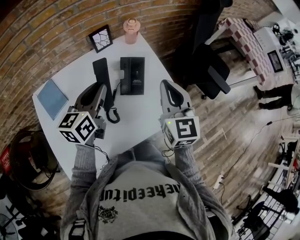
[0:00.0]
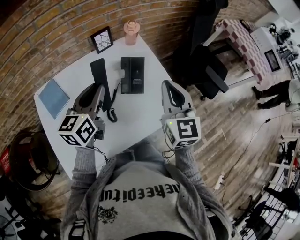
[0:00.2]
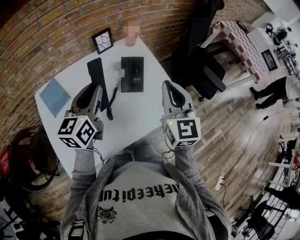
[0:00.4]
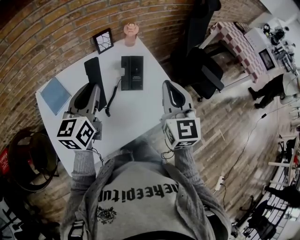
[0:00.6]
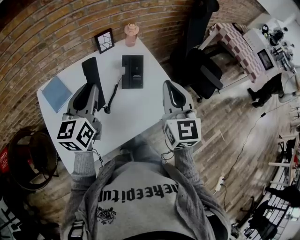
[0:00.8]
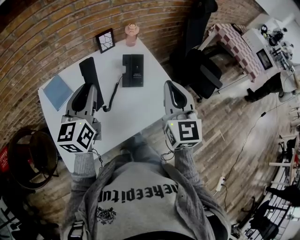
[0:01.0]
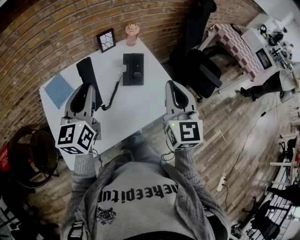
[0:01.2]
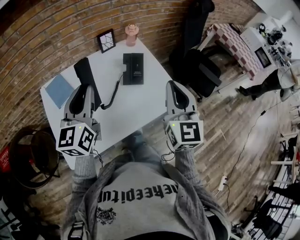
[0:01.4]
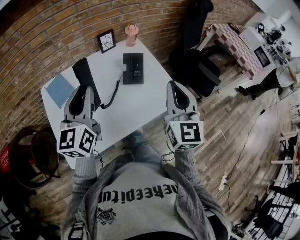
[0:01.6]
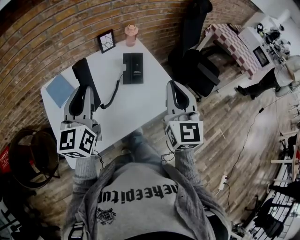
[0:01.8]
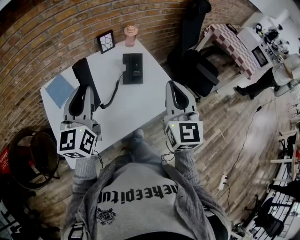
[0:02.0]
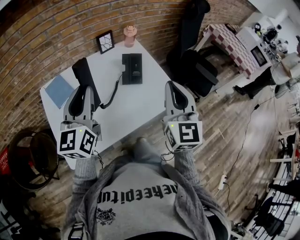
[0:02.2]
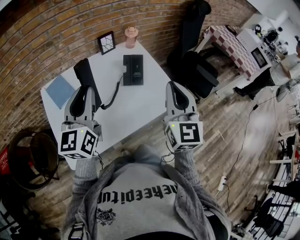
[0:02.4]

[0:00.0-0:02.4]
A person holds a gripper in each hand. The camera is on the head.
0:00.0 to 0:01.2: The two grippers go some 15 cm backward and upward. The left gripper swivels about 20 degrees.
0:01.2 to 0:02.4: The grippers stay close to where they were, moving slightly.

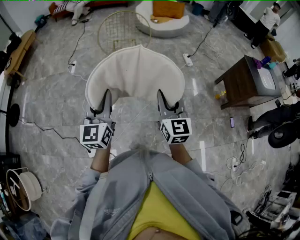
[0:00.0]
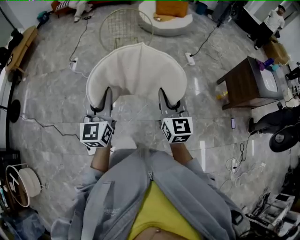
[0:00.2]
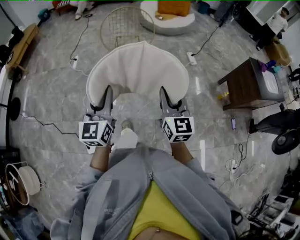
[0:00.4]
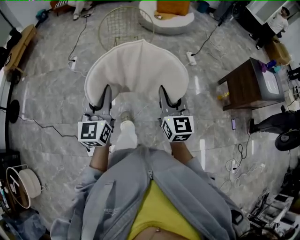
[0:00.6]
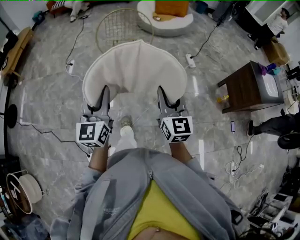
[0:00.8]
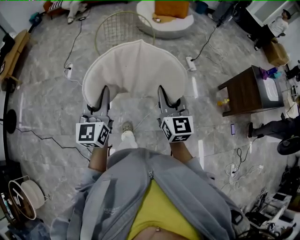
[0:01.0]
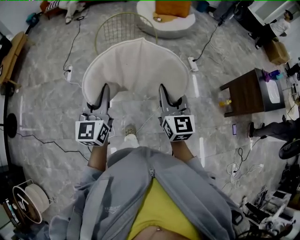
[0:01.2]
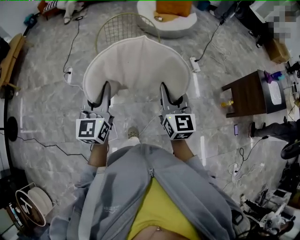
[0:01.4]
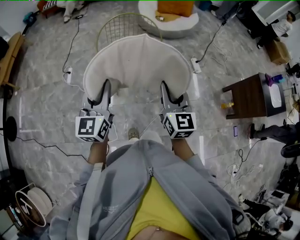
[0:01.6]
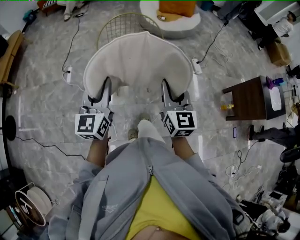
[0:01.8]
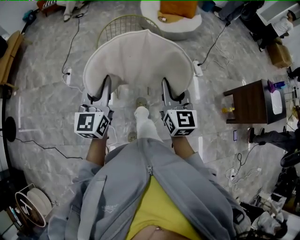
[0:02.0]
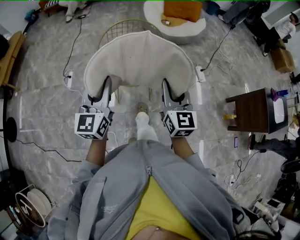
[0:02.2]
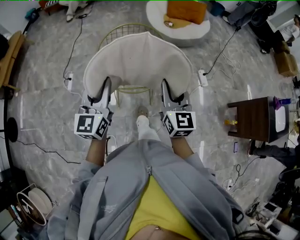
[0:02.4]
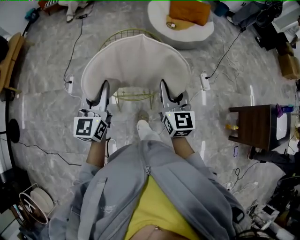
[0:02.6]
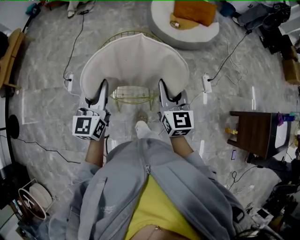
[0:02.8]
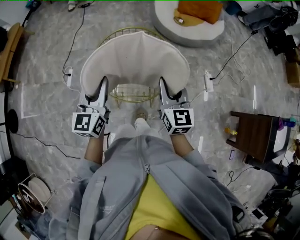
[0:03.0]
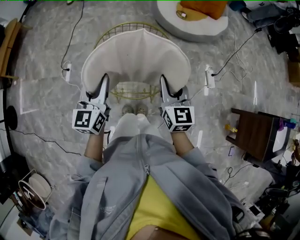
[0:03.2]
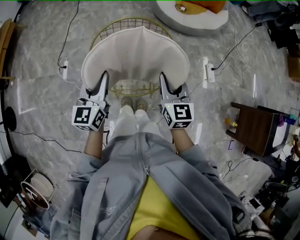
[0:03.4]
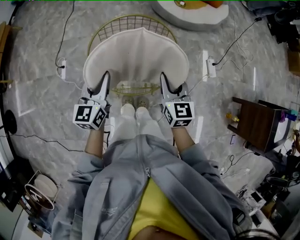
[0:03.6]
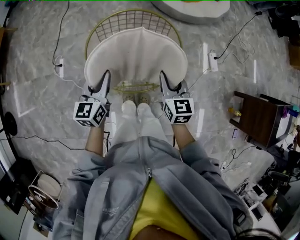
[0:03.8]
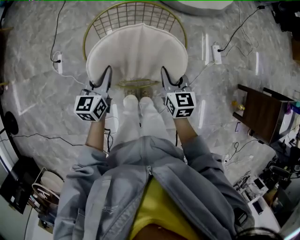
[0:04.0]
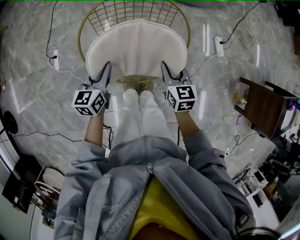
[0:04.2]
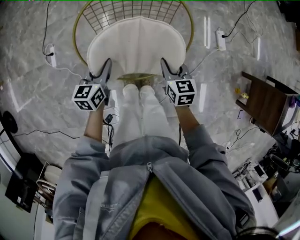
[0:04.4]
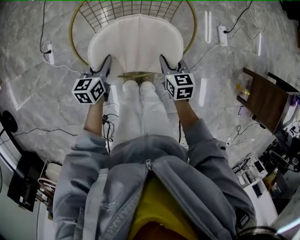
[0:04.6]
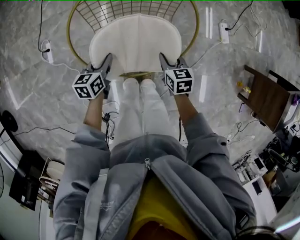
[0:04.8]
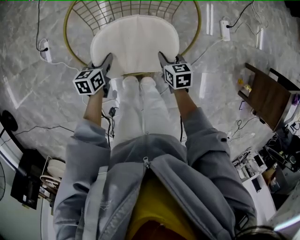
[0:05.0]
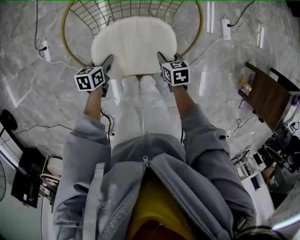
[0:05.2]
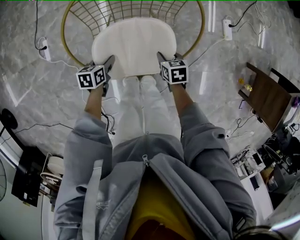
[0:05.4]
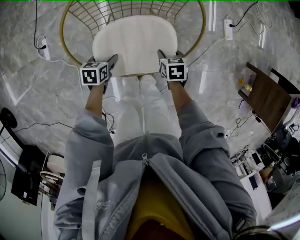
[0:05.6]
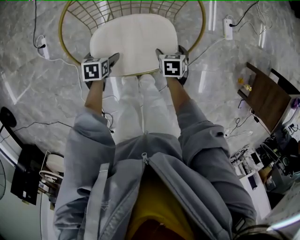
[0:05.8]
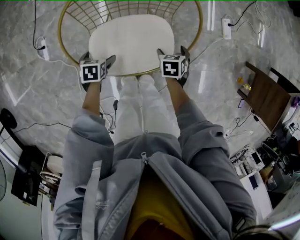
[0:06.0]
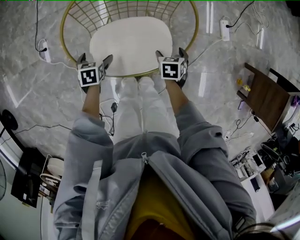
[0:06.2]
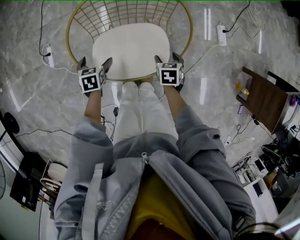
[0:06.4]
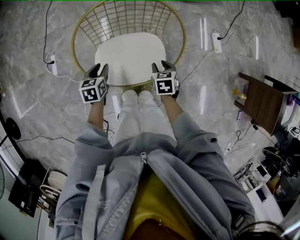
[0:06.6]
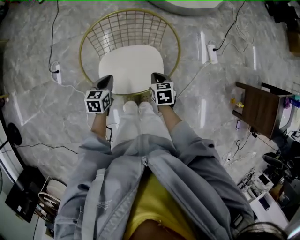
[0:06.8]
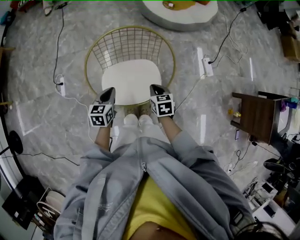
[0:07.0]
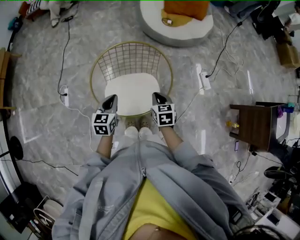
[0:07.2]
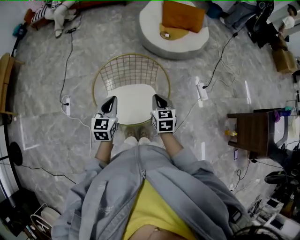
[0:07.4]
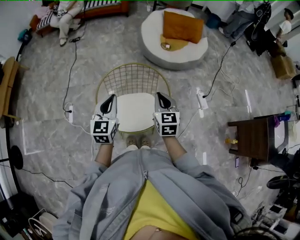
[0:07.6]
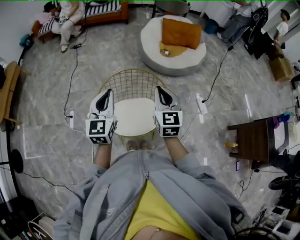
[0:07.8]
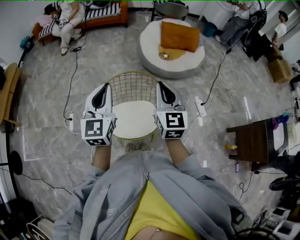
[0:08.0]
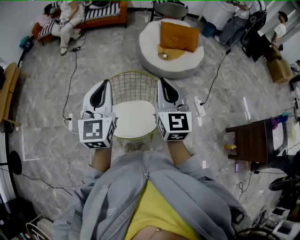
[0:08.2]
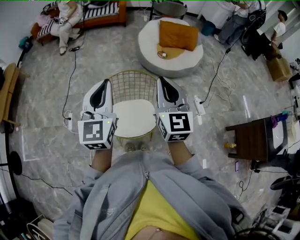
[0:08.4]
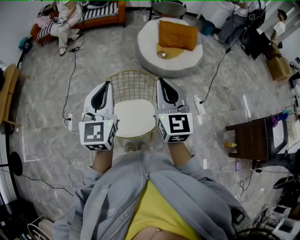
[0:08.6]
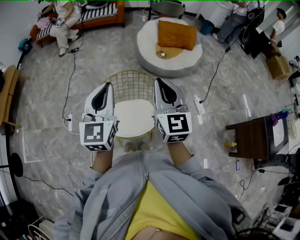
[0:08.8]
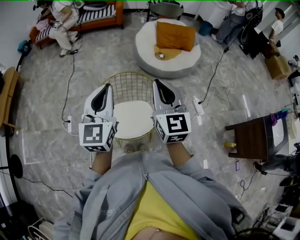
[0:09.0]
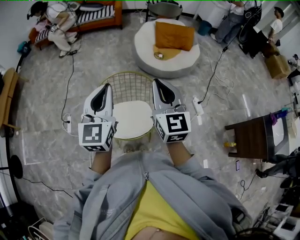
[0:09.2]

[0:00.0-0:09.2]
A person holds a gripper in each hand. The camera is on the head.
0:00.0 to 0:01.6: Both grippers move forward, about 35 cm.
0:01.6 to 0:03.0: The grippers both shift forward by approximately 40 cm.
0:03.0 to 0:04.6: The grippers both shift downward by about 35 cm. The right gripper points its fingers about 30 degrees further downward, while the left gripper swivels about 40 degrees.
0:04.6 to 0:06.2: Both grippers travel together downward, some 10 cm. The right gripper turns by approximately 30 degrees, and opens up. The left gripper points its fingers roughly 30 degrees further downward, and opens.
0:06.2 to 0:07.6: Both grippers move upward, approximately 40 cm. The right gripper tips its fingers upward by about 50 degrees, and closes up. Meanwhile the left gripper points its fingers roughly 50 degrees further upward, and closes.
0:07.6 to 0:09.2: Both grippers move upward, about 20 cm. The right gripper rotates approximately 20 degrees.

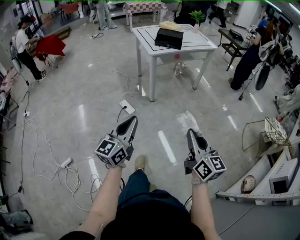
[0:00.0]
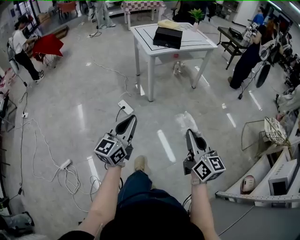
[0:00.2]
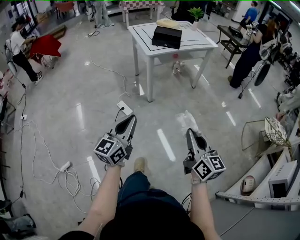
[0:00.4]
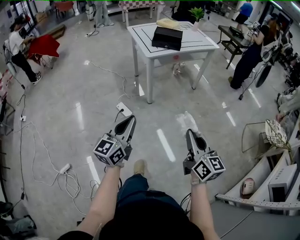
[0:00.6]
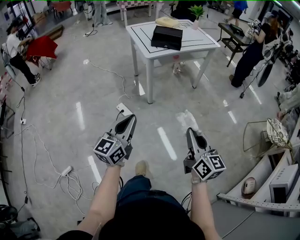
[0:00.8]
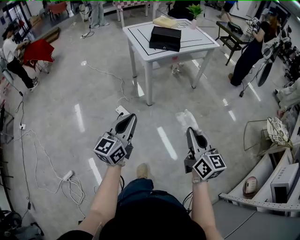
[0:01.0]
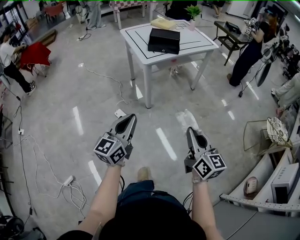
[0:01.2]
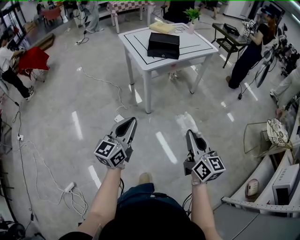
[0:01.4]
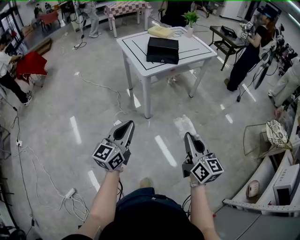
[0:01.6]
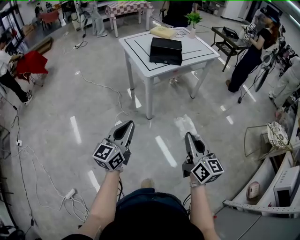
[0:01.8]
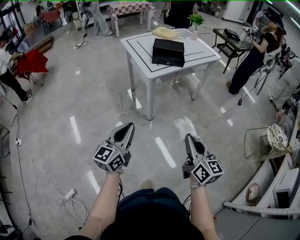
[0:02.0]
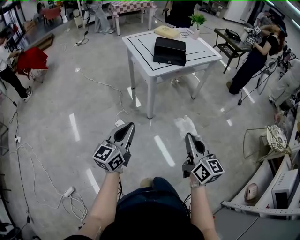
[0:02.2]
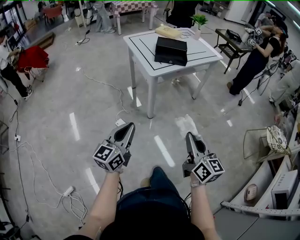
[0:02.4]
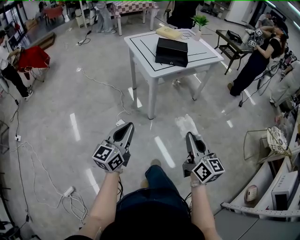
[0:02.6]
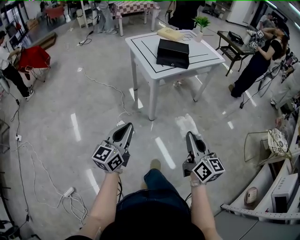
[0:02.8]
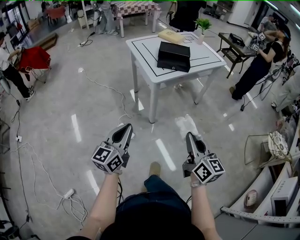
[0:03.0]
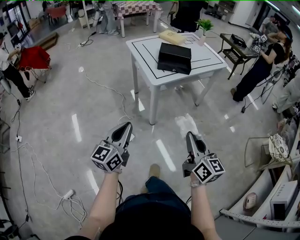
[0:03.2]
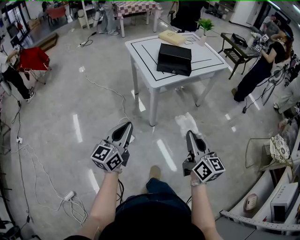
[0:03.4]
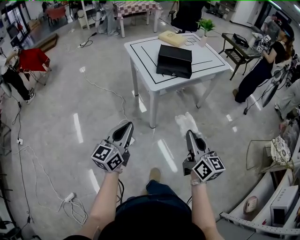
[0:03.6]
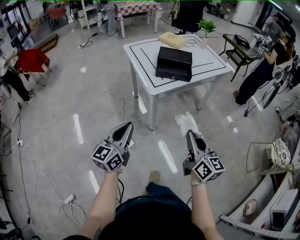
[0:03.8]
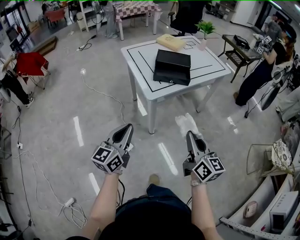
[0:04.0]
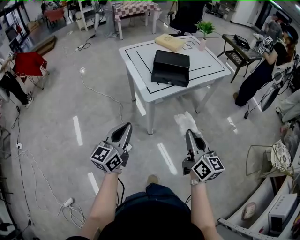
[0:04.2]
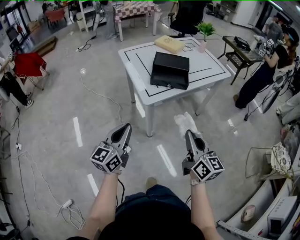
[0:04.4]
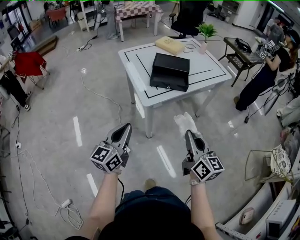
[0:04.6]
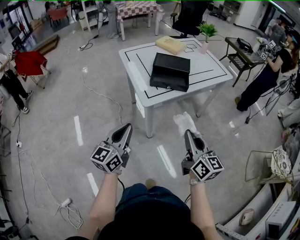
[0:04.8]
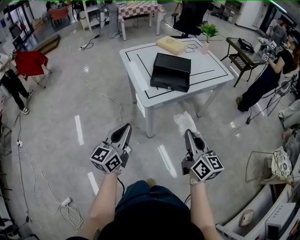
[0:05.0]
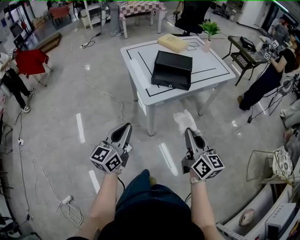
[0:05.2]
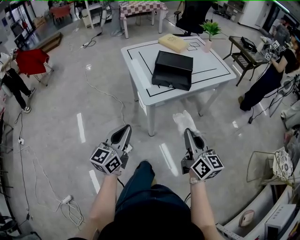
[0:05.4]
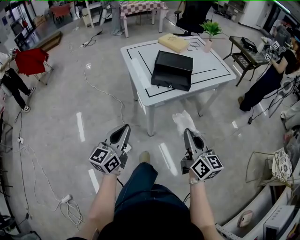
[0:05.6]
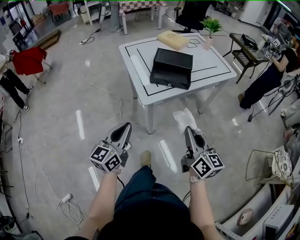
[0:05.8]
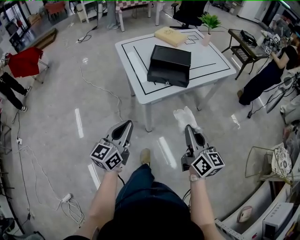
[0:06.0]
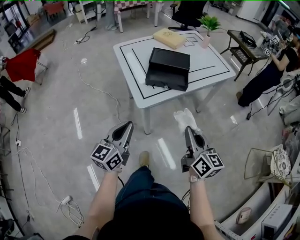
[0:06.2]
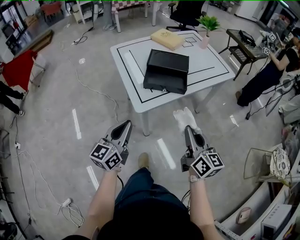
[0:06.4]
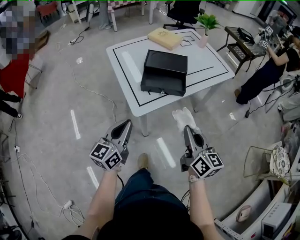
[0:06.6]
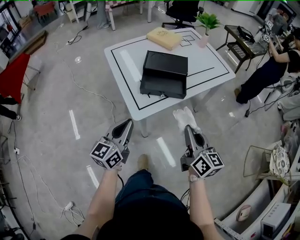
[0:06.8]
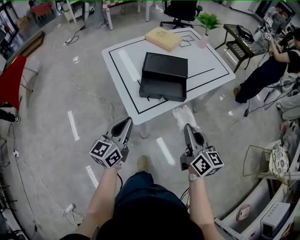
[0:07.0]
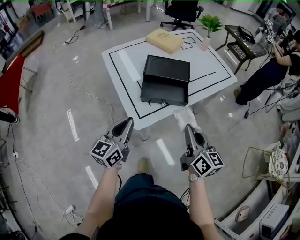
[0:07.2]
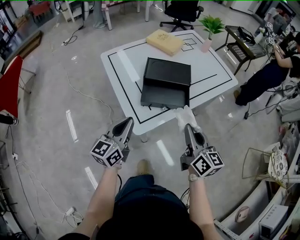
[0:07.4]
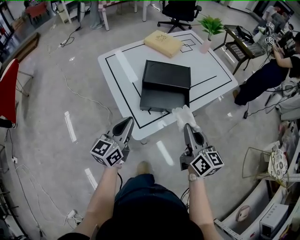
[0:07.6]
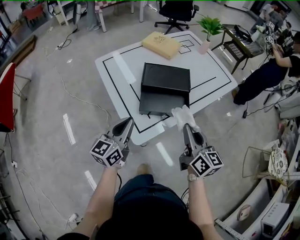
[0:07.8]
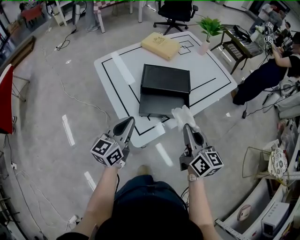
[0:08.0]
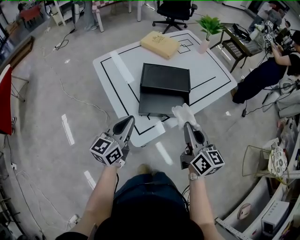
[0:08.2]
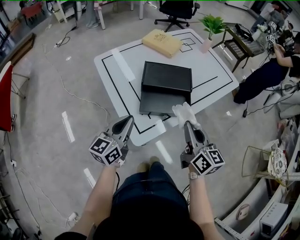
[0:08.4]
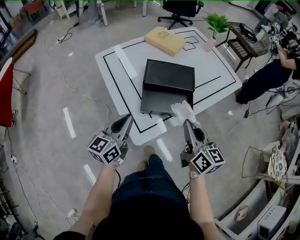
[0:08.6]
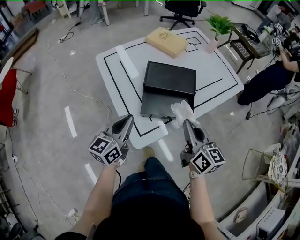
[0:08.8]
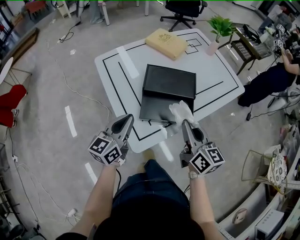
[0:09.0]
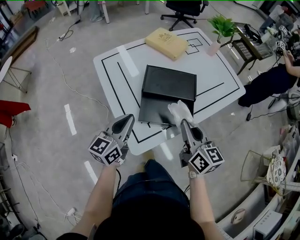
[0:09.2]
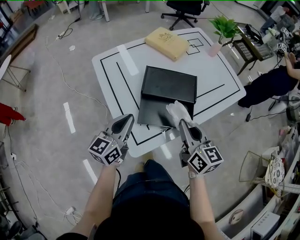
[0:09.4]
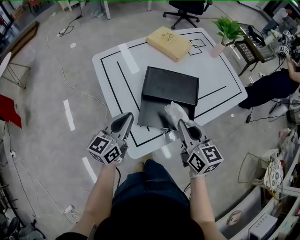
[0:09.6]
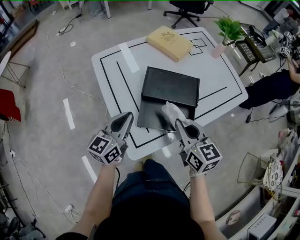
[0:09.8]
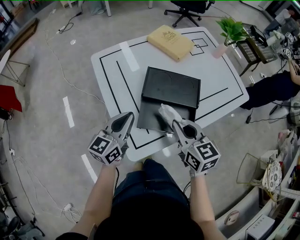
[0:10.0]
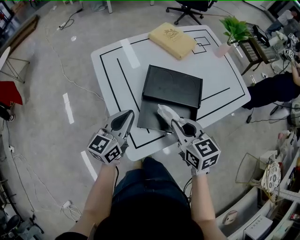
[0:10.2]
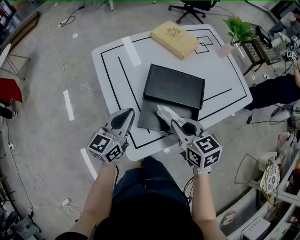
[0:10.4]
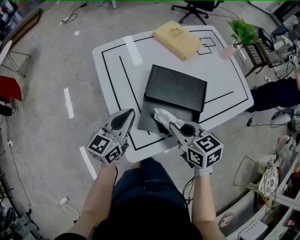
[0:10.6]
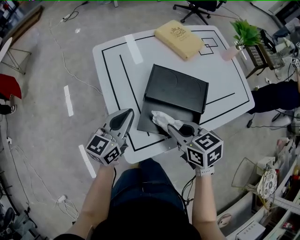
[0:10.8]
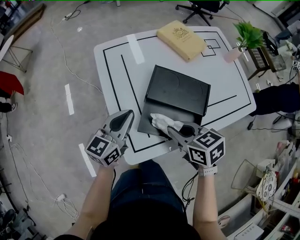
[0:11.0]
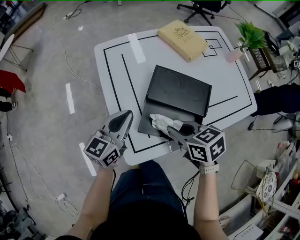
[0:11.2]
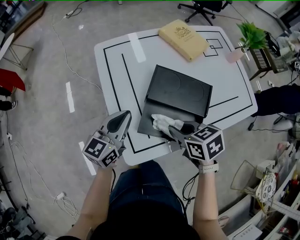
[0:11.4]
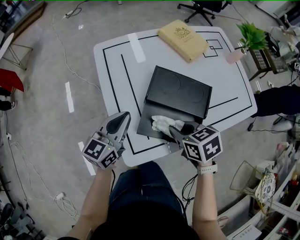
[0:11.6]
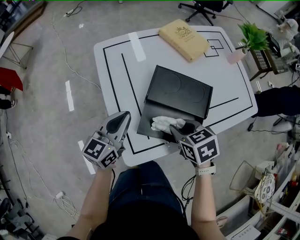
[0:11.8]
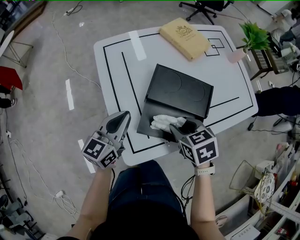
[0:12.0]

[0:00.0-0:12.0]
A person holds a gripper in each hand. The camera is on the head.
0:00.0 to 0:01.6: Both grippers move forward, about 25 cm.
0:01.6 to 0:03.0: The right gripper travels forward and to the left by about 10 cm; the left gripper is displaced to the left by roughly 5 cm.
0:03.0 to 0:04.4: Both grippers move forward, roughly 20 cm.
0:04.4 to 0:06.0: Both grippers move forward, some 5 cm.
0:06.0 to 0:07.6: The grippers both shift forward by approximately 25 cm.
0:07.6 to 0:09.0: The grippers both shift forward by roughly 10 cm.
0:09.0 to 0:10.4: The right gripper heads forward and downward, covering some 10 cm, and turns by about 40 degrees. The left gripper heads forward, covering about 10 cm.
0:10.4 to 0:12.0: The right gripper is displaced downward by some 5 cm, rotates some 20 degrees, and opens up.
